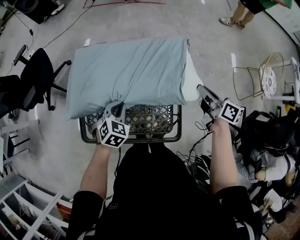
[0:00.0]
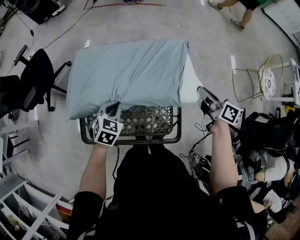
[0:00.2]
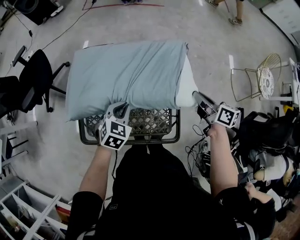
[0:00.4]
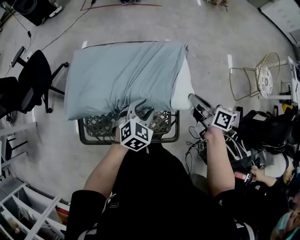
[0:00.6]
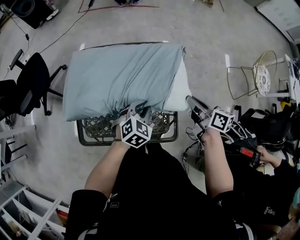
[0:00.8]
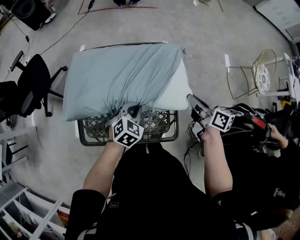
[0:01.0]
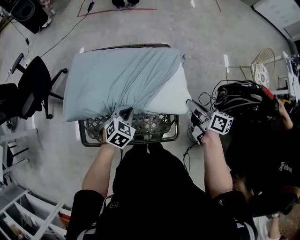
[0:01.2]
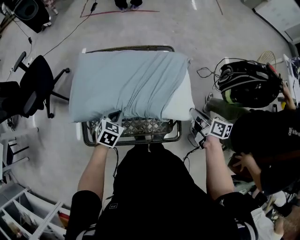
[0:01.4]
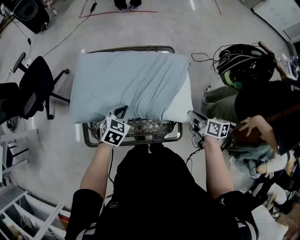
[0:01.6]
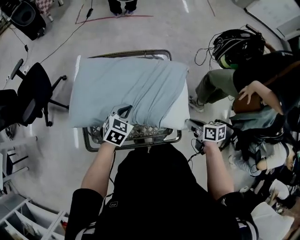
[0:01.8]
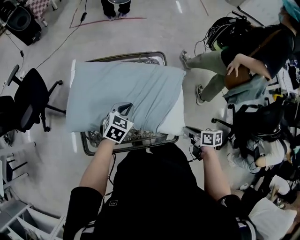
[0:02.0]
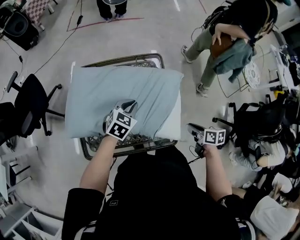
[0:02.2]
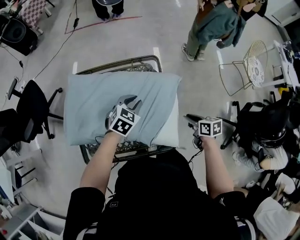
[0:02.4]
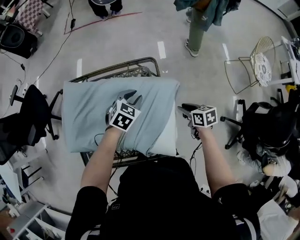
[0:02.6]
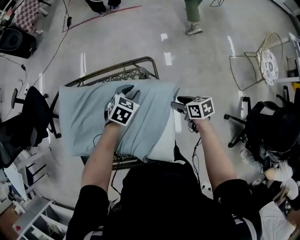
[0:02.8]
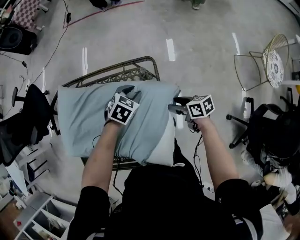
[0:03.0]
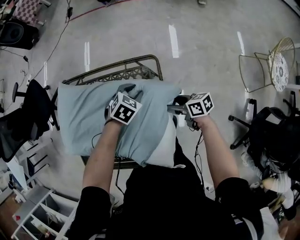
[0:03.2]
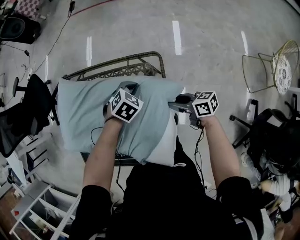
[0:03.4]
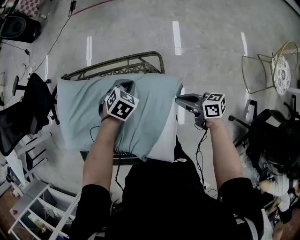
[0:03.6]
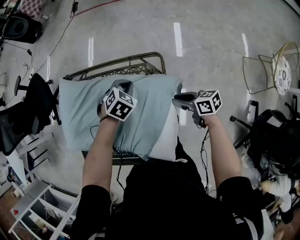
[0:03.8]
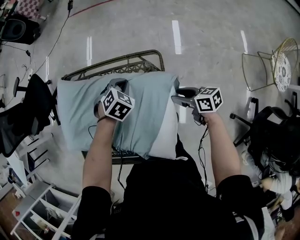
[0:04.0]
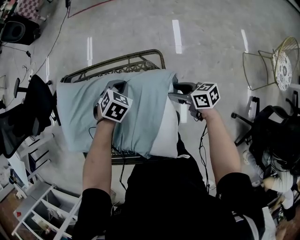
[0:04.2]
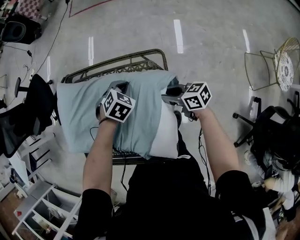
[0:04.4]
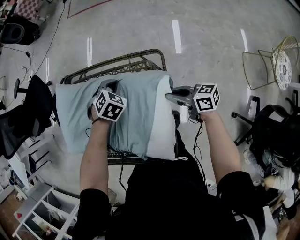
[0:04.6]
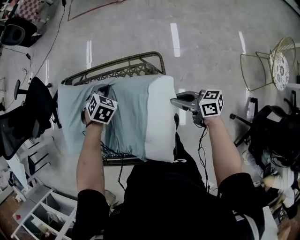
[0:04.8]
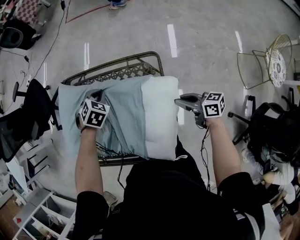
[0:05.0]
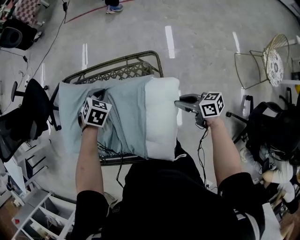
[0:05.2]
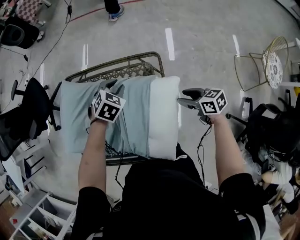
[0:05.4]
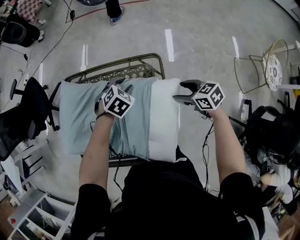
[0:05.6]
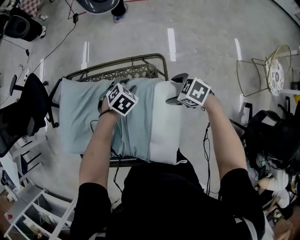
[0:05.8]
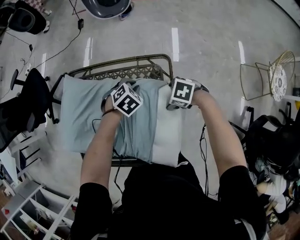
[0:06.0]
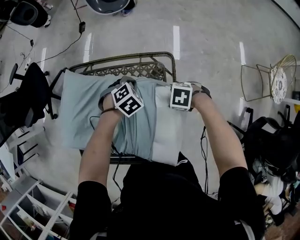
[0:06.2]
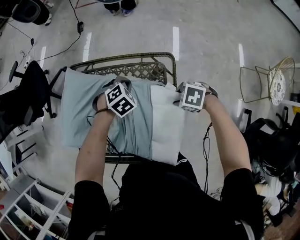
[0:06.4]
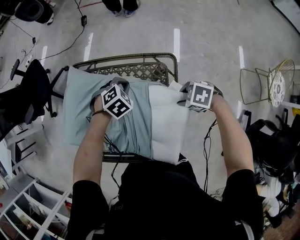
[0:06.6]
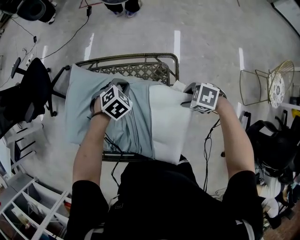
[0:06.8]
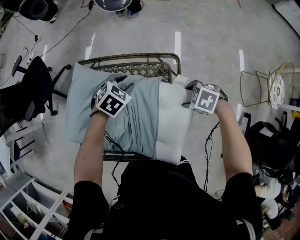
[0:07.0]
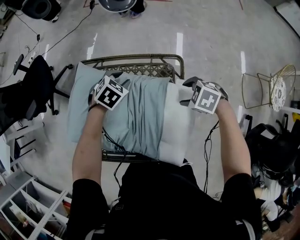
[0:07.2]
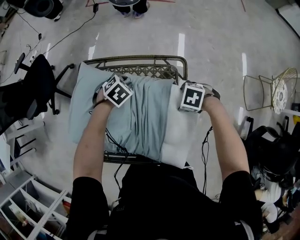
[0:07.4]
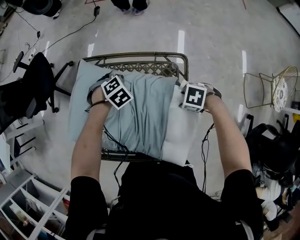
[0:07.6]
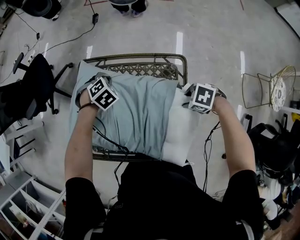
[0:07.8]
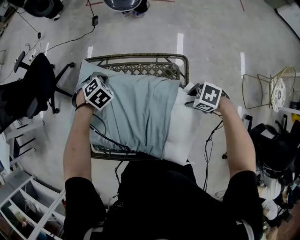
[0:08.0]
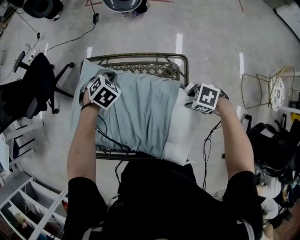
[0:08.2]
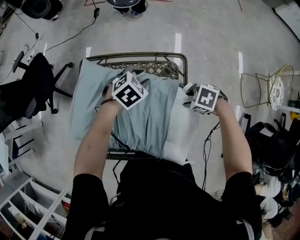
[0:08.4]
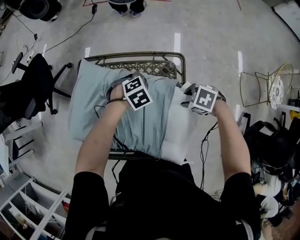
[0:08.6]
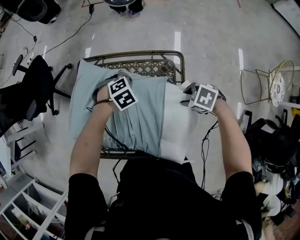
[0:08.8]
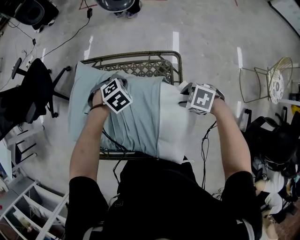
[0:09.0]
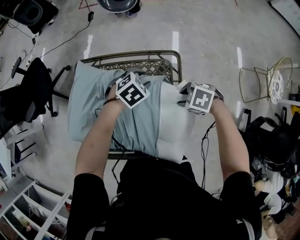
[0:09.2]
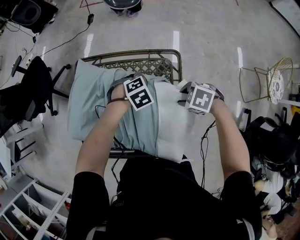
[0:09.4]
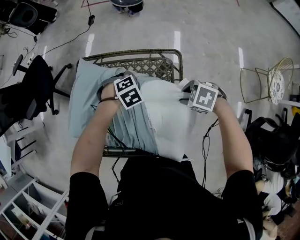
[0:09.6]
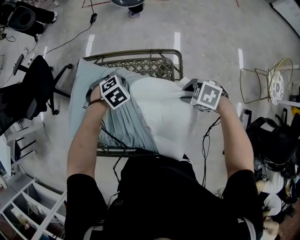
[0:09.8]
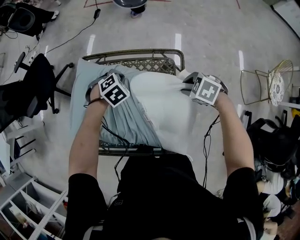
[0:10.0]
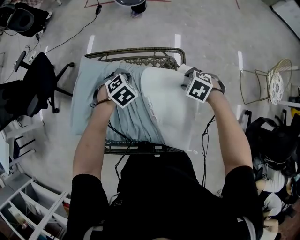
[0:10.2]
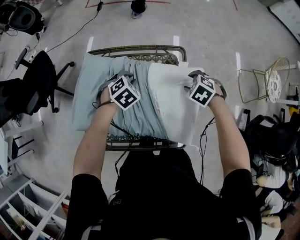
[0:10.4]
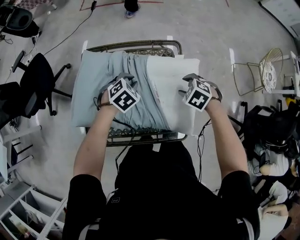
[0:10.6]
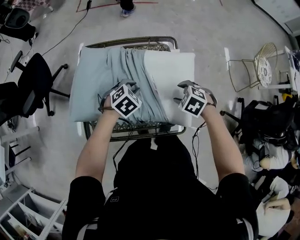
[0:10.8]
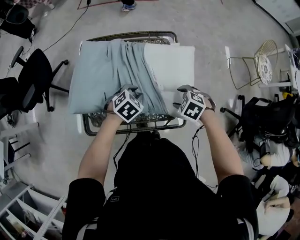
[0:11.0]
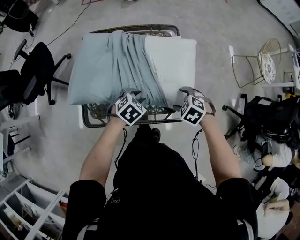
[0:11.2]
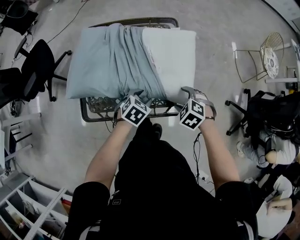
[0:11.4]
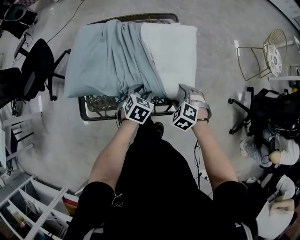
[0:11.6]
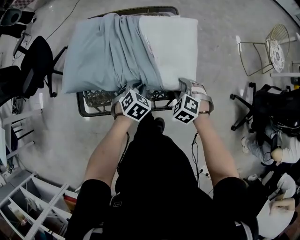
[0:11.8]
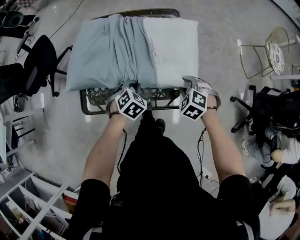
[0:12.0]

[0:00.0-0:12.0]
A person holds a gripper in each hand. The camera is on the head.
0:00.0 to 0:01.6: The left gripper reaches about 10 cm to the right, then returns, and opens, then closes again. The right gripper heads backward and downward, covering some 15 cm.
0:01.6 to 0:03.0: The right gripper heads forward and downward, covering roughly 20 cm, changes its angle by roughly 30 degrees, and opens; the left gripper heads forward and to the right, covering approximately 30 cm, and opens its fingers.
0:03.0 to 0:04.4: The right gripper goes approximately 10 cm to the left and forward, and changes its angle by approximately 20 degrees; the left gripper heads to the left, covering about 5 cm, and closes its fingers.
0:04.4 to 0:06.0: The right gripper points its fingers some 40 degrees further downward, and opens up.
0:06.0 to 0:07.6: The right gripper goes upward and returns, approximately 5 cm each way, and closes its fingers, while the left gripper moves roughly 15 cm.
0:07.6 to 0:09.0: The left gripper opens, then closes again; the right gripper shifts by about 5 cm.
0:09.0 to 0:10.4: The left gripper opens and closes again, while the right gripper swivels about 20 degrees.
0:10.4 to 0:12.0: The left gripper ends up some 25 cm from where it was, and opens, then closes once more. The right gripper shifts by approximately 25 cm.

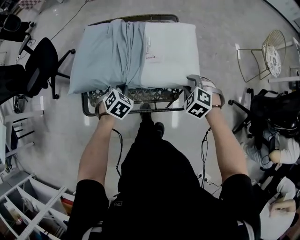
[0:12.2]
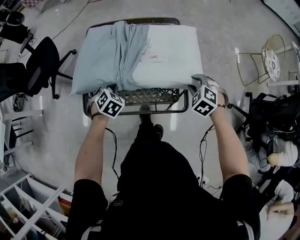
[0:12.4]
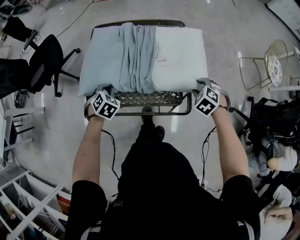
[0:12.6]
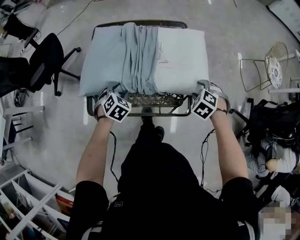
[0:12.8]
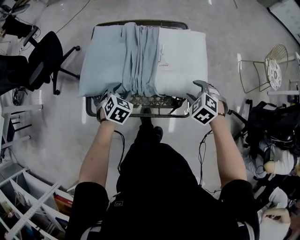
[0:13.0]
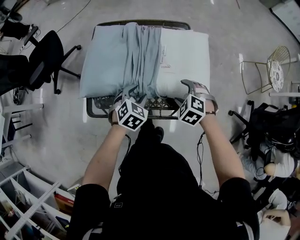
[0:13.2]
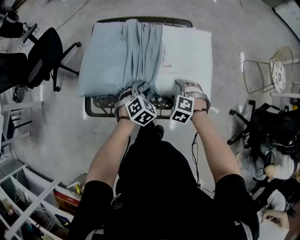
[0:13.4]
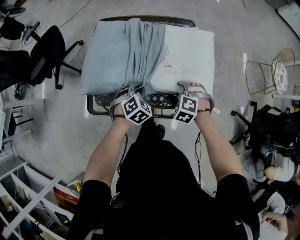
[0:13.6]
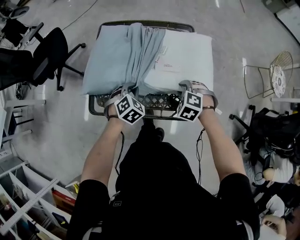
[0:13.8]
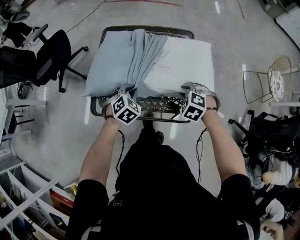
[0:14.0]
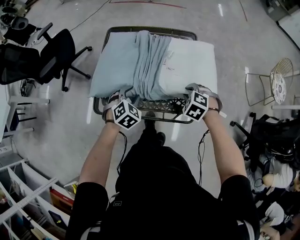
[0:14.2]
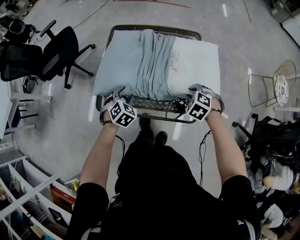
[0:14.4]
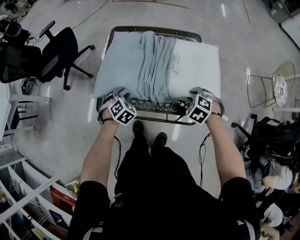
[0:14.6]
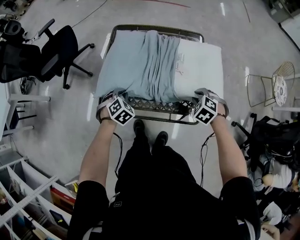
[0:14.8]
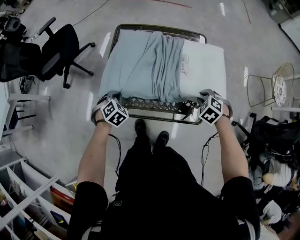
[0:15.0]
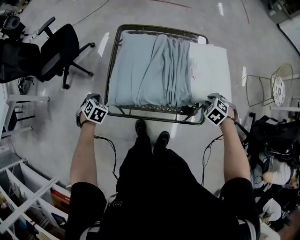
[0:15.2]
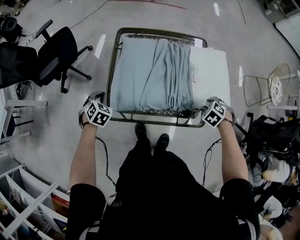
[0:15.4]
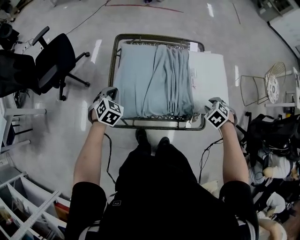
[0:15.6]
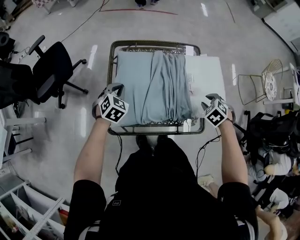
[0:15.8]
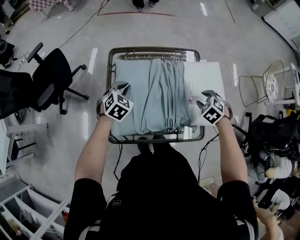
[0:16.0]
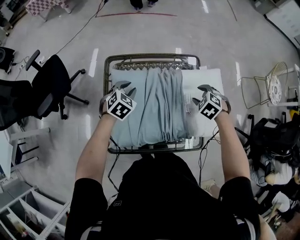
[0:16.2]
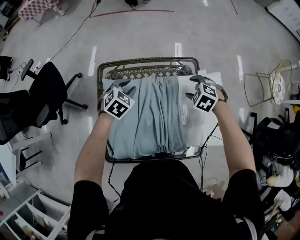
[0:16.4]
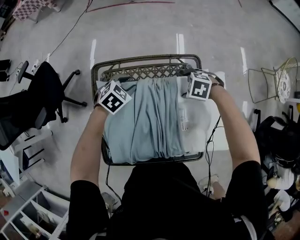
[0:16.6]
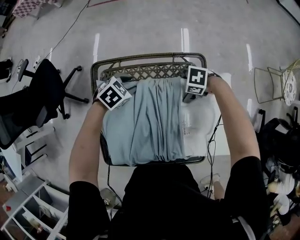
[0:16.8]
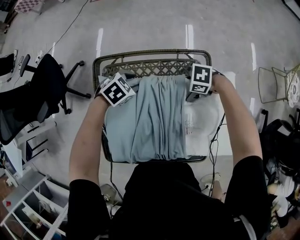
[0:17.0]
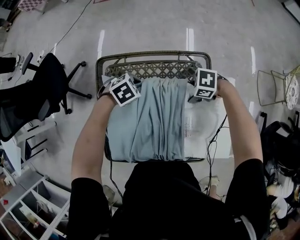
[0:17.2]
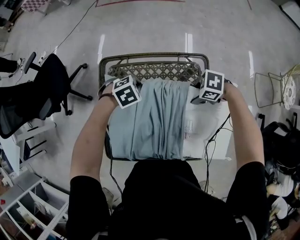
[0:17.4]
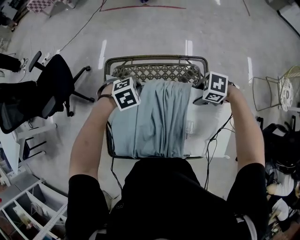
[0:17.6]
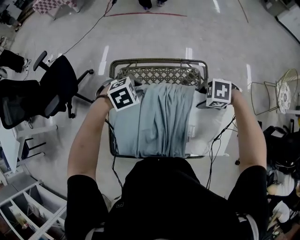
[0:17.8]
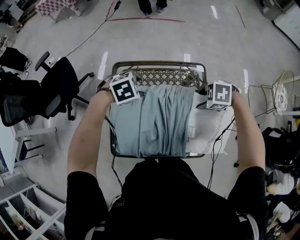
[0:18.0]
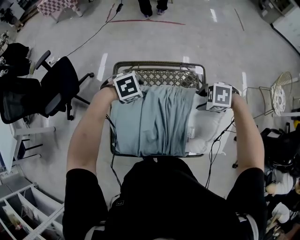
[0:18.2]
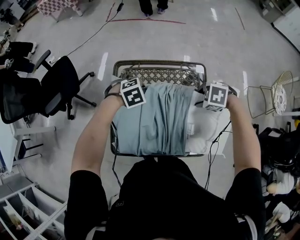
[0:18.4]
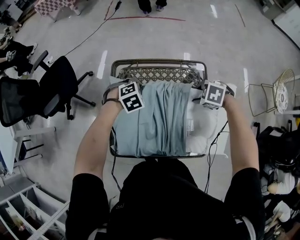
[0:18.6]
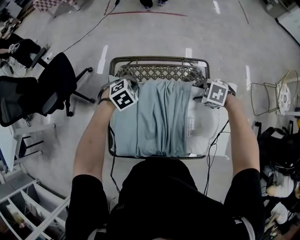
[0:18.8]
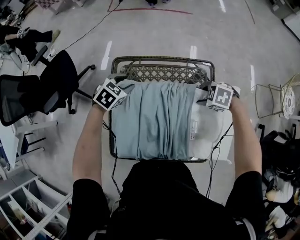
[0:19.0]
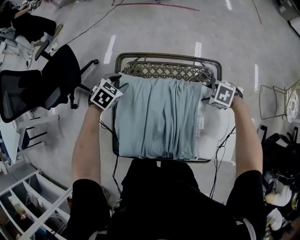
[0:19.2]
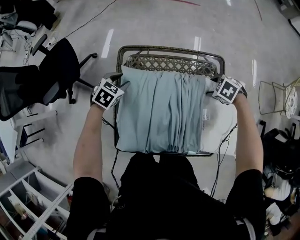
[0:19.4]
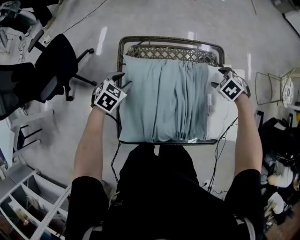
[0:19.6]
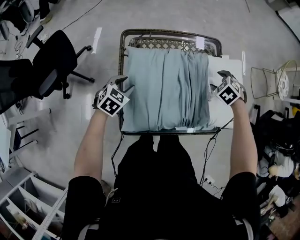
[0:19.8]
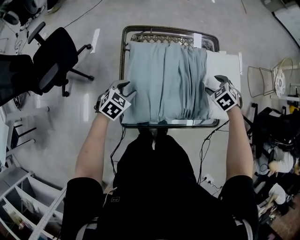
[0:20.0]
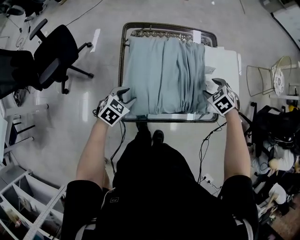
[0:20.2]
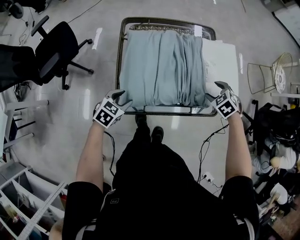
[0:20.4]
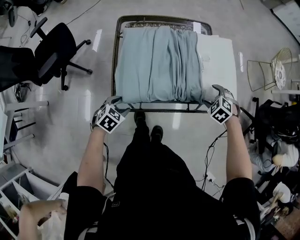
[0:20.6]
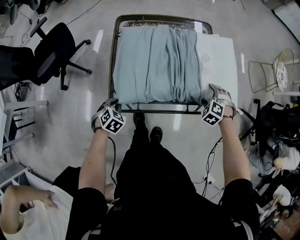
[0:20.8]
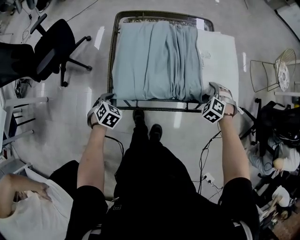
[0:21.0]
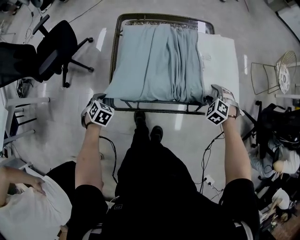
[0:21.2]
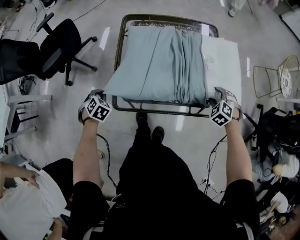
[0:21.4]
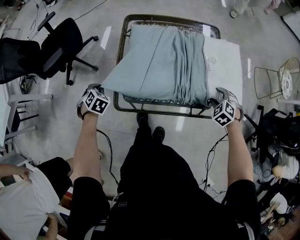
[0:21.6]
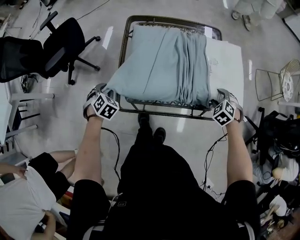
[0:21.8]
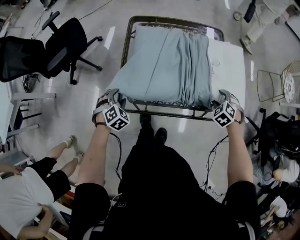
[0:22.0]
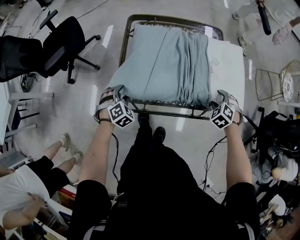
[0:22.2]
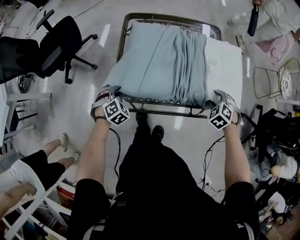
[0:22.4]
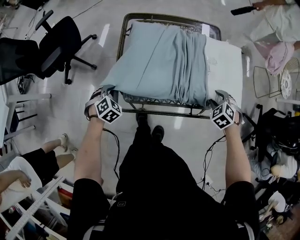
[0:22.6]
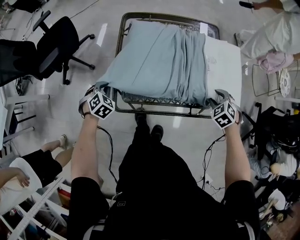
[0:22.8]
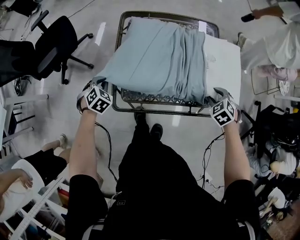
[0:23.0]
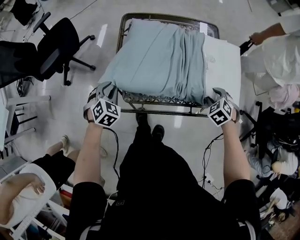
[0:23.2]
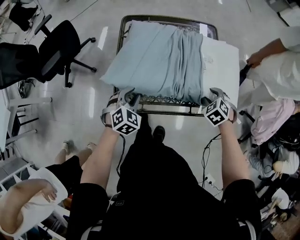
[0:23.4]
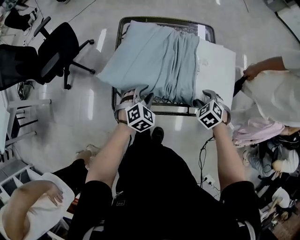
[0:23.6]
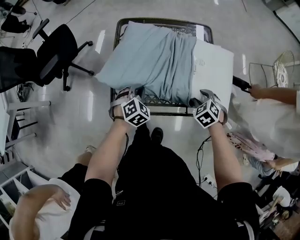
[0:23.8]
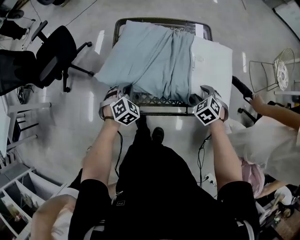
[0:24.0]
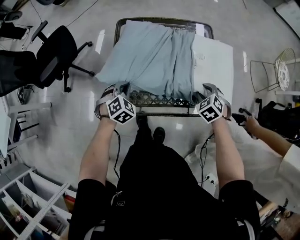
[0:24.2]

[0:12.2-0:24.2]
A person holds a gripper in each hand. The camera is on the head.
0:12.2 to 0:13.8: The right gripper goes roughly 5 cm to the left, and opens, then closes again; the left gripper swings left and right, approximately 15 cm each way, with 2 reversals, and opens, then closes again.
0:13.8 to 0:15.2: The right gripper ends up some 5 cm from where it was, while the left gripper changes place by approximately 30 cm, rotates roughly 20 degrees, and opens, then closes again.
0:15.2 to 0:16.6: The right gripper moves about 30 cm, rotates roughly 20 degrees, and opens. Meanwhile the left gripper reaches about 10 cm upward, then returns, changes its angle by roughly 40 degrees, and opens up.
0:16.6 to 0:18.2: The grippers both shift upward by approximately 15 cm. The right gripper closes up; the left gripper closes and opens again.
0:18.2 to 0:19.8: The right gripper shifts some 10 cm downward, and turns by about 40 degrees; the left gripper changes place by about 20 cm, turns by about 30 degrees, and closes, then reopens.
0:19.8 to 0:21.2: The right gripper shifts about 20 cm backward and to the right; the left gripper heads backward, covering about 20 cm, swivels some 30 degrees, and closes up.
0:21.2 to 0:22.6: The left gripper travels to the right and back again, some 5 cm each way, and opens and closes again.
0:22.6 to 0:24.2: The right gripper ends up some 5 cm from where it was, while the left gripper travels to the right by about 10 cm, and opens, then closes again.
